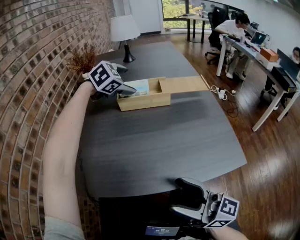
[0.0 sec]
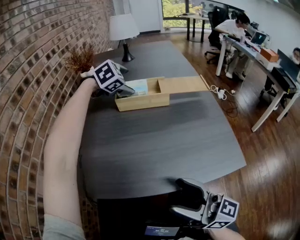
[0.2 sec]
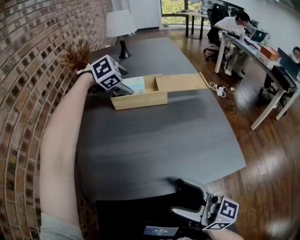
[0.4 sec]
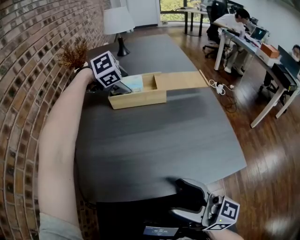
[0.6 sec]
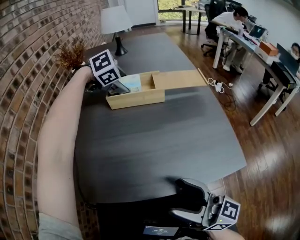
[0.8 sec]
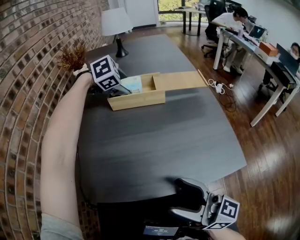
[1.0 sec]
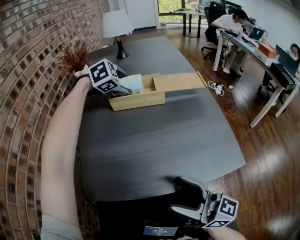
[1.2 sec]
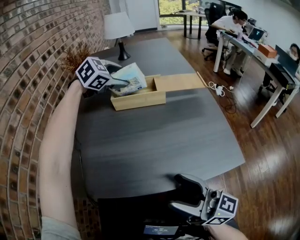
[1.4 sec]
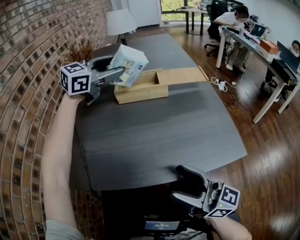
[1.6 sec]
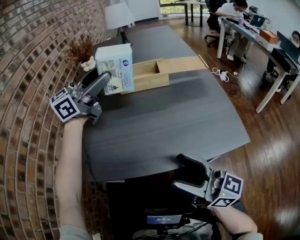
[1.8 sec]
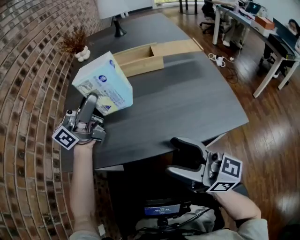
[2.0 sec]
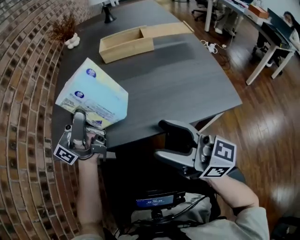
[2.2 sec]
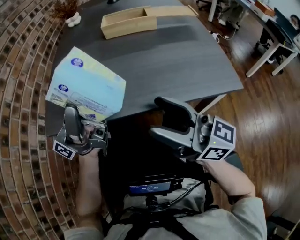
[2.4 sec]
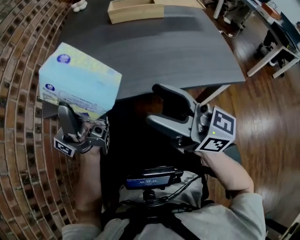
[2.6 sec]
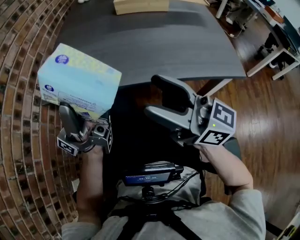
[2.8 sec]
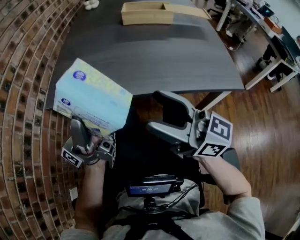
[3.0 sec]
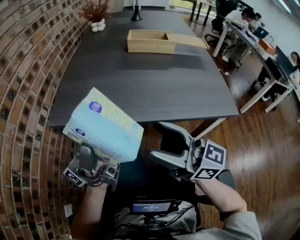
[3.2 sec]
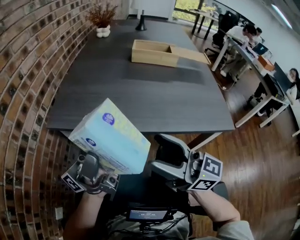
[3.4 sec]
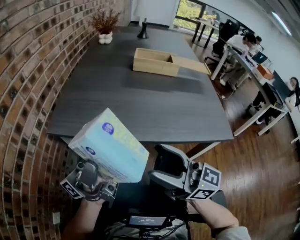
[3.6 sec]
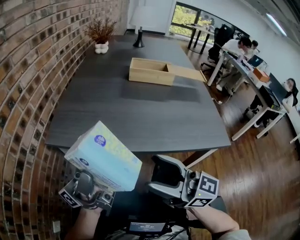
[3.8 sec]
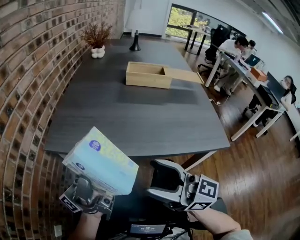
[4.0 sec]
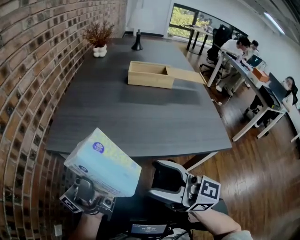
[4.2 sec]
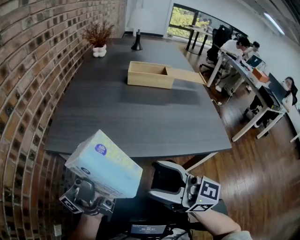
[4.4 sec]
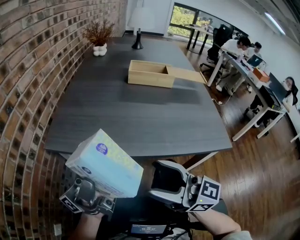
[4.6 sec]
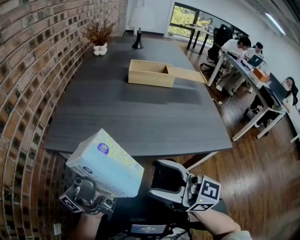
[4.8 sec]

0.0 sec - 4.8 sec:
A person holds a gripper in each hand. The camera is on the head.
0.0 sec - 1.6 sec: The left gripper goes about 10 cm upward and backward, and tips its fingers upward by approximately 30 degrees.
1.6 sec - 3.2 sec: The left gripper shifts approximately 40 cm backward, and tips its fingers upward by roughly 70 degrees. Meanwhile the right gripper shifts approximately 15 cm to the left and backward.
3.2 sec - 4.8 sec: The grippers move only a little.

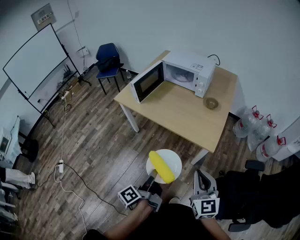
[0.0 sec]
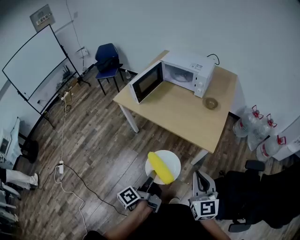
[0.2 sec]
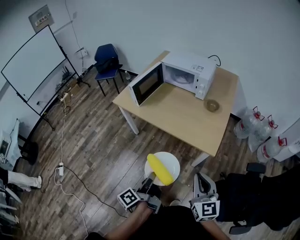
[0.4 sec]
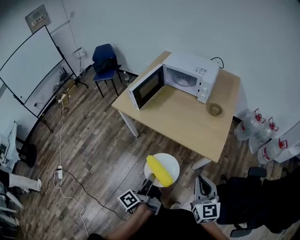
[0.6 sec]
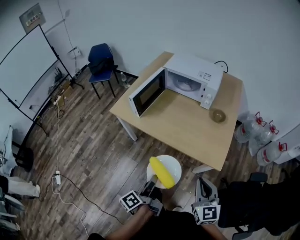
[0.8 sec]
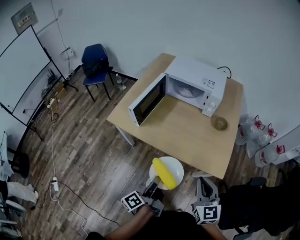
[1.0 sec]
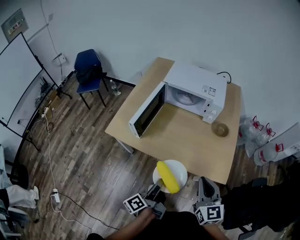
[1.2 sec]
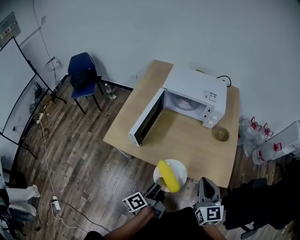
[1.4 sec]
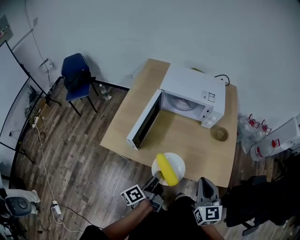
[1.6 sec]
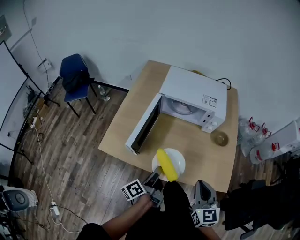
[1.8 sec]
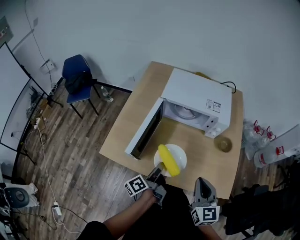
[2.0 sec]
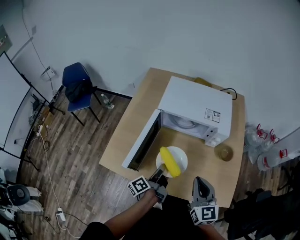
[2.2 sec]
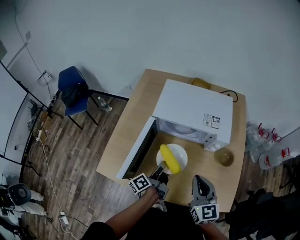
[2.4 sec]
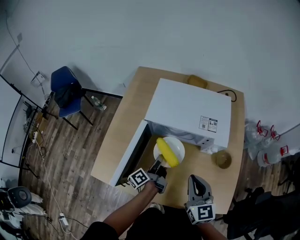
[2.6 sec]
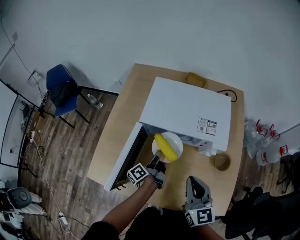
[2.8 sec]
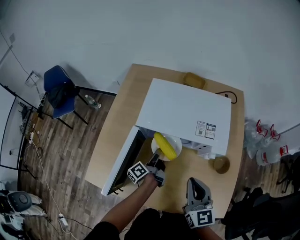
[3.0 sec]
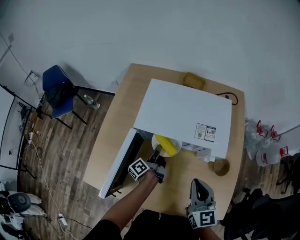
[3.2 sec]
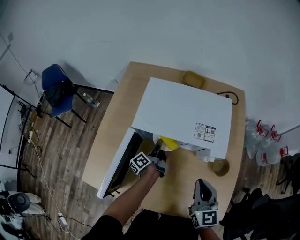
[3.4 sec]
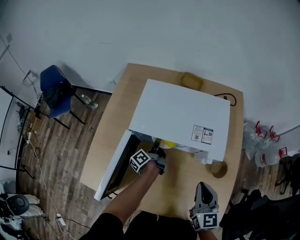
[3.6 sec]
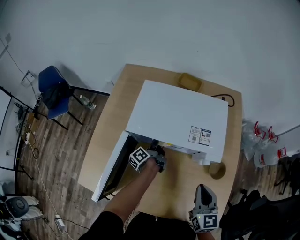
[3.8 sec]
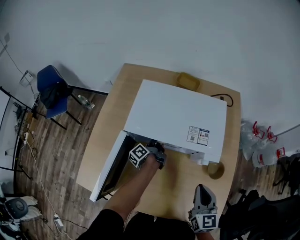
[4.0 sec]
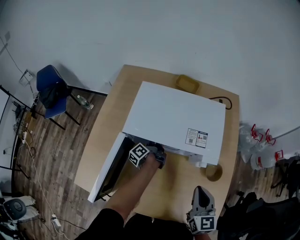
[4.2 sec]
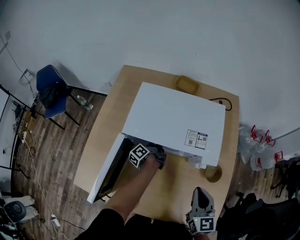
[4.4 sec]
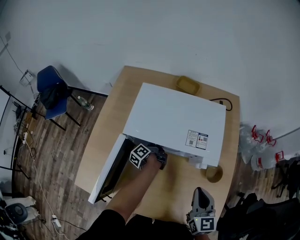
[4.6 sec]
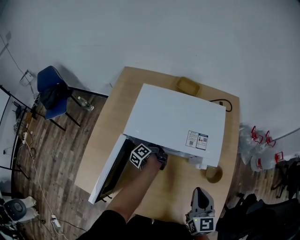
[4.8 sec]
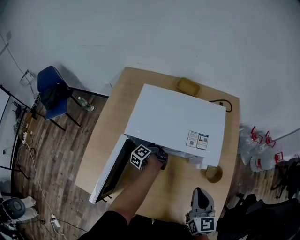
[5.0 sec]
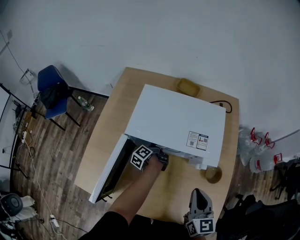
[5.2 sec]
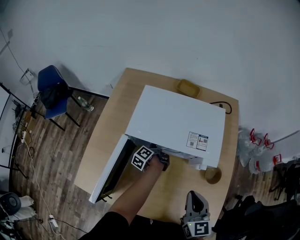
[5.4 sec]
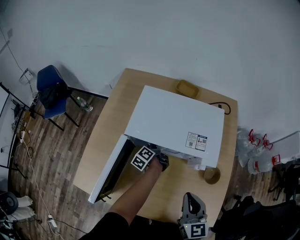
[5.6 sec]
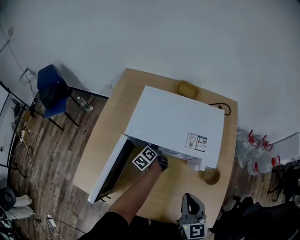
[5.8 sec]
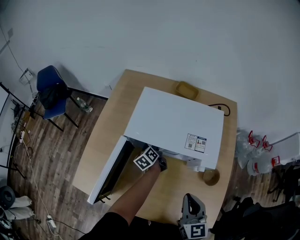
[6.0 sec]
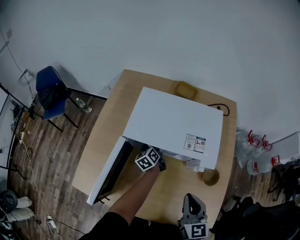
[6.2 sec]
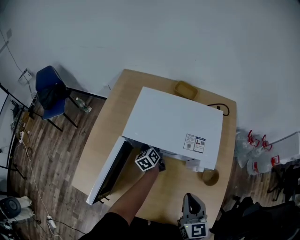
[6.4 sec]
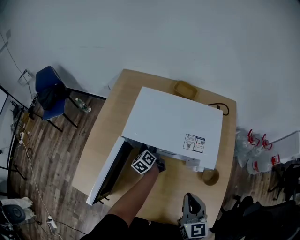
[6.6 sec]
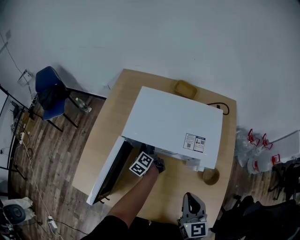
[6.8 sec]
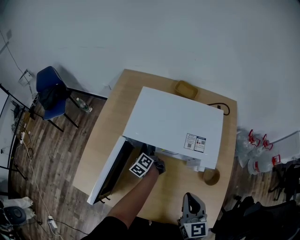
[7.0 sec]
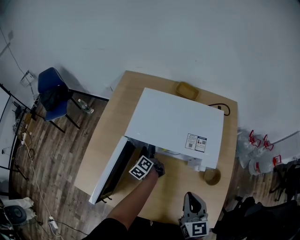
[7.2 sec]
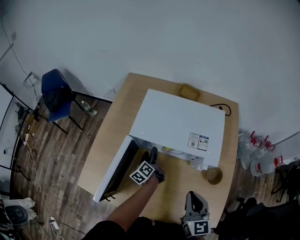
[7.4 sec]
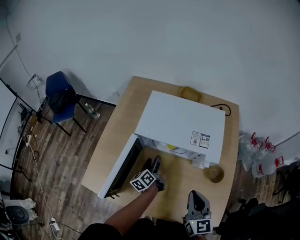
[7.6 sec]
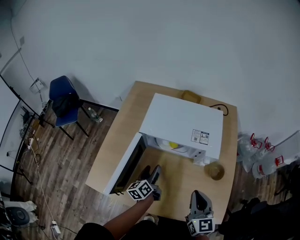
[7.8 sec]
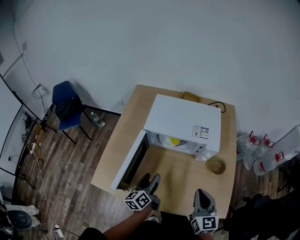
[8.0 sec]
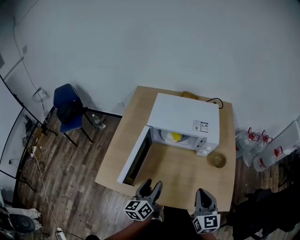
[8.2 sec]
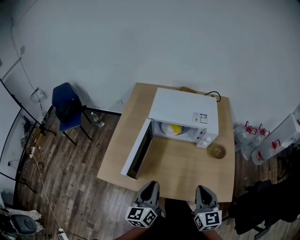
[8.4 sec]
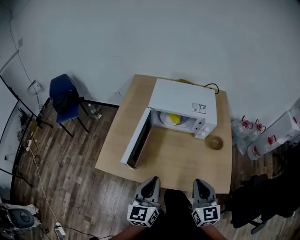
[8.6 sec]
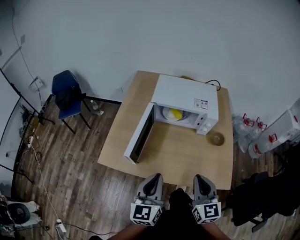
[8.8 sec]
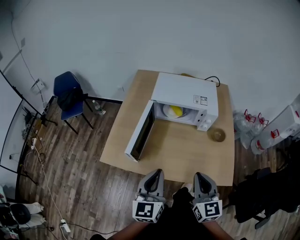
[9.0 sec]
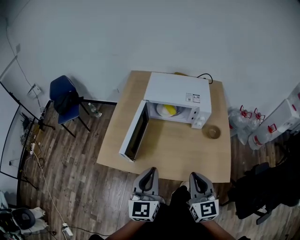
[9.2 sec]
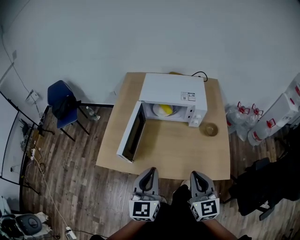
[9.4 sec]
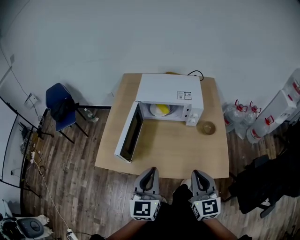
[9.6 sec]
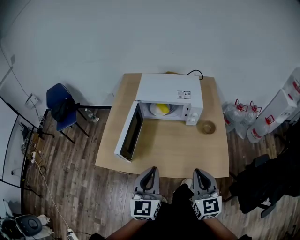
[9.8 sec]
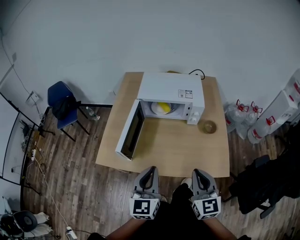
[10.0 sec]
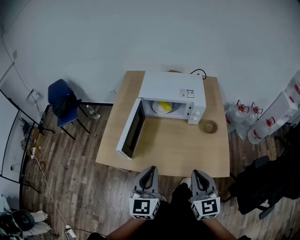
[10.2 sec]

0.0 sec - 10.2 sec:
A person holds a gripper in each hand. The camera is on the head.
0.0 sec - 1.4 sec: The right gripper shifts roughly 30 cm forward and to the left. The left gripper is displaced forward by about 30 cm.
1.4 sec - 3.0 sec: The two grippers go some 35 cm forward.
3.0 sec - 4.4 sec: The left gripper travels forward and downward by some 15 cm. The right gripper shifts roughly 10 cm to the right.
4.4 sec - 5.8 sec: The left gripper turns by about 30 degrees, and opens. The right gripper moves to the left, roughly 5 cm.
5.8 sec - 7.2 sec: The grippers stay close to where they were, moving slightly.
7.2 sec - 8.8 sec: The left gripper heads backward and upward, covering some 50 cm, rotates around the line of its fingers by some 50 degrees, clockwise from behind, and closes its fingers. Meanwhile the right gripper heads backward, covering roughly 20 cm.
8.8 sec - 10.2 sec: The right gripper changes place by some 5 cm.
